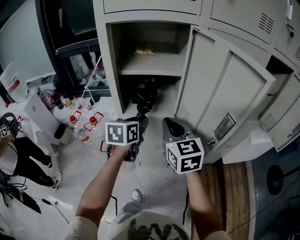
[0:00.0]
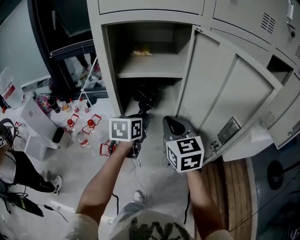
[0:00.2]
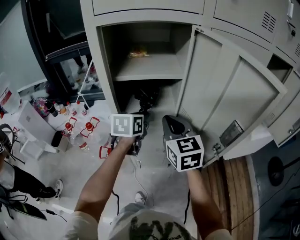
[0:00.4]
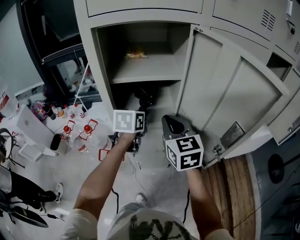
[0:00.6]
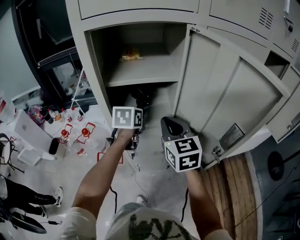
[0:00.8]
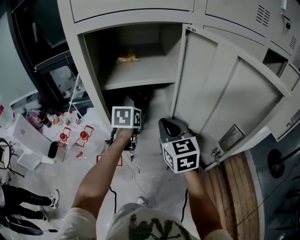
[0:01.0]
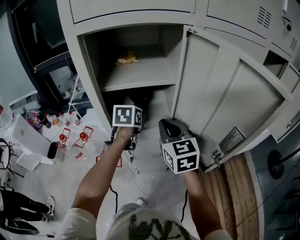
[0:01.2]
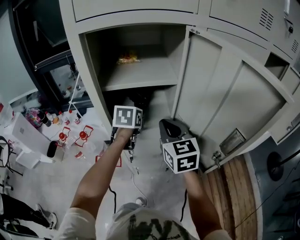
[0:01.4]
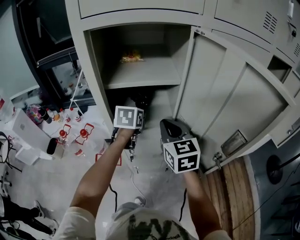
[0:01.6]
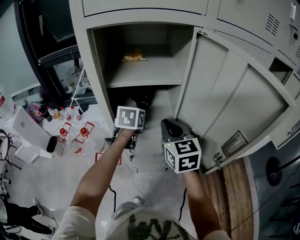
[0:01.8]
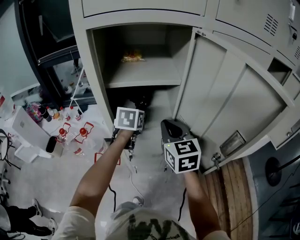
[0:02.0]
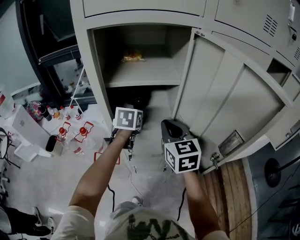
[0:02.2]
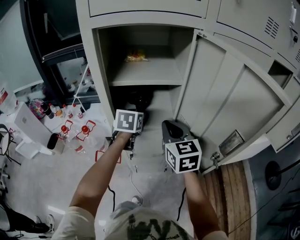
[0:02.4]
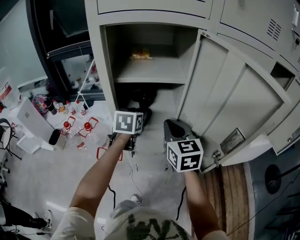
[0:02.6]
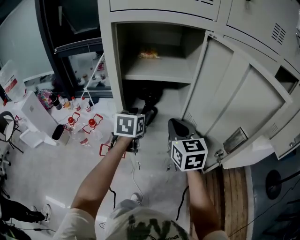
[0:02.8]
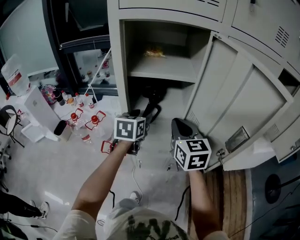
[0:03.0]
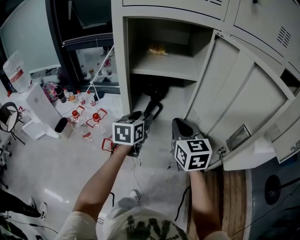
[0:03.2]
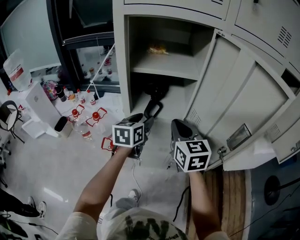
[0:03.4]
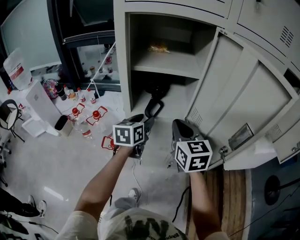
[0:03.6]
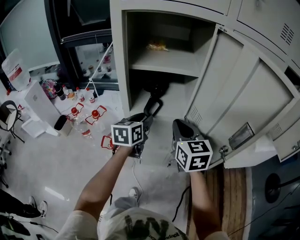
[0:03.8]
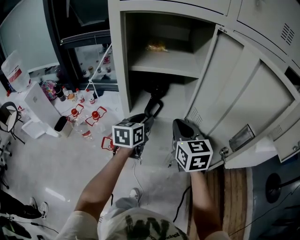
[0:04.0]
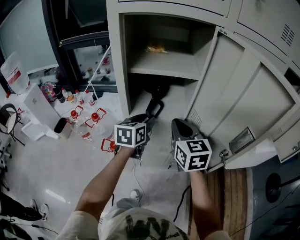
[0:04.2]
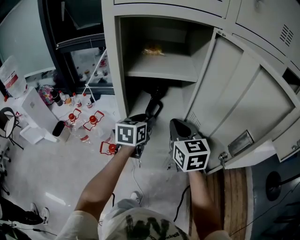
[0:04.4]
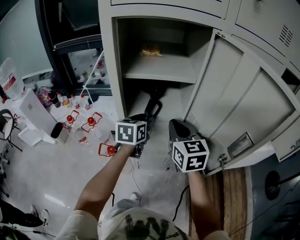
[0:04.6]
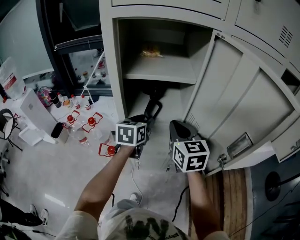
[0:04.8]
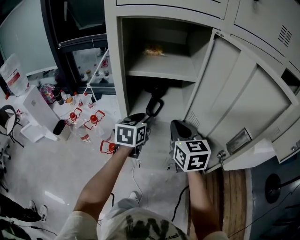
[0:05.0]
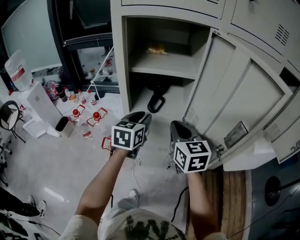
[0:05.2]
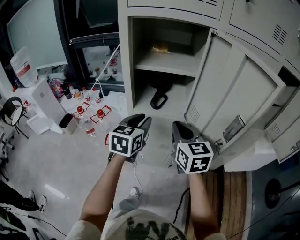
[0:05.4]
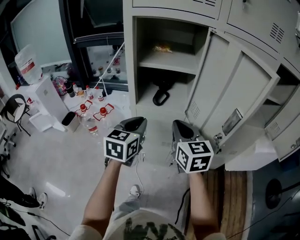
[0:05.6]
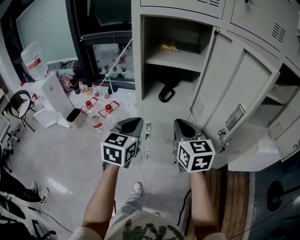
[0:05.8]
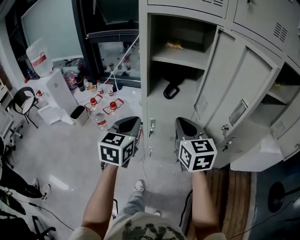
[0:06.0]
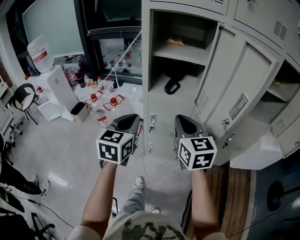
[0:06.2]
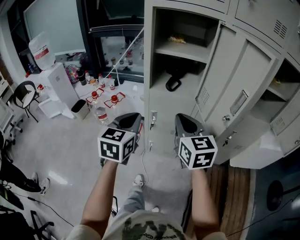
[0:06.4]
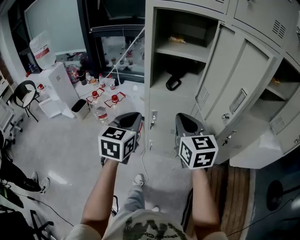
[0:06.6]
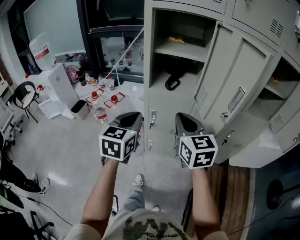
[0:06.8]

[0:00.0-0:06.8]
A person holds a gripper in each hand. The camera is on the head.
0:00.0 to 0:01.4: The right gripper moves forward, roughly 5 cm, while the left gripper is displaced forward by roughly 15 cm.
0:01.4 to 0:02.8: The left gripper is displaced backward by approximately 5 cm.
0:02.8 to 0:04.0: The left gripper shifts by roughly 5 cm.
0:04.0 to 0:05.4: The left gripper travels backward by some 5 cm.
0:05.4 to 0:06.8: The left gripper heads backward and to the left, covering approximately 15 cm, and closes. Meanwhile the right gripper moves backward, about 10 cm.

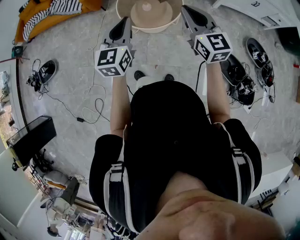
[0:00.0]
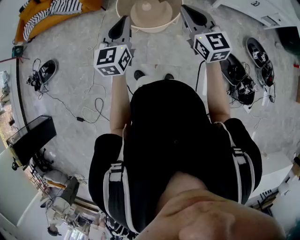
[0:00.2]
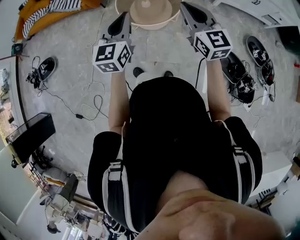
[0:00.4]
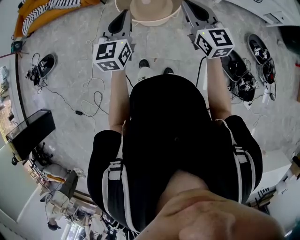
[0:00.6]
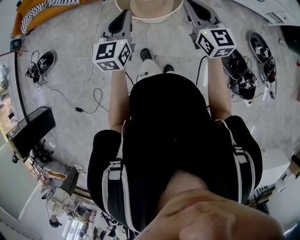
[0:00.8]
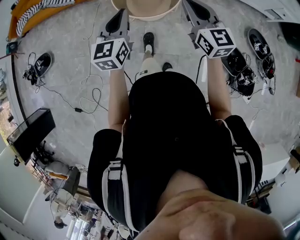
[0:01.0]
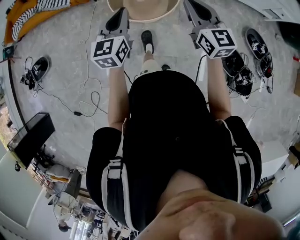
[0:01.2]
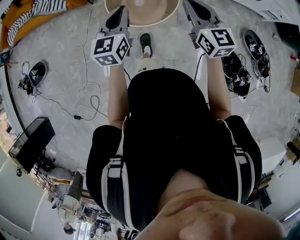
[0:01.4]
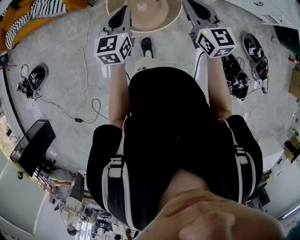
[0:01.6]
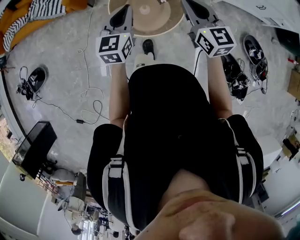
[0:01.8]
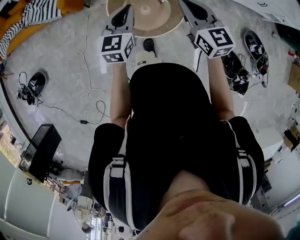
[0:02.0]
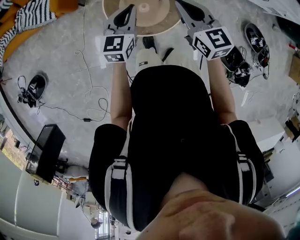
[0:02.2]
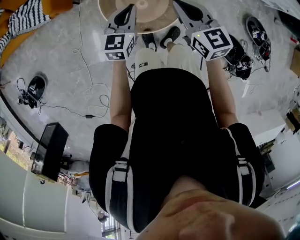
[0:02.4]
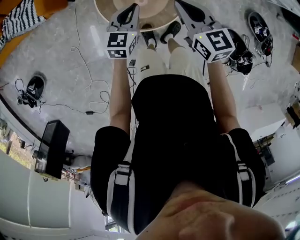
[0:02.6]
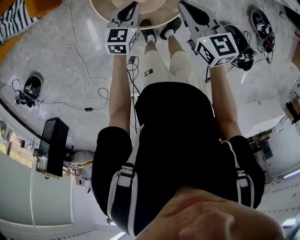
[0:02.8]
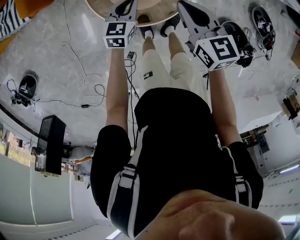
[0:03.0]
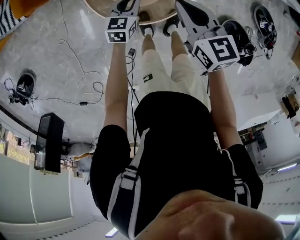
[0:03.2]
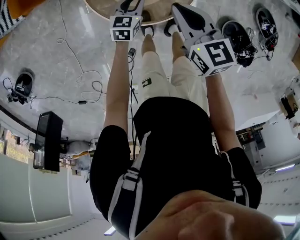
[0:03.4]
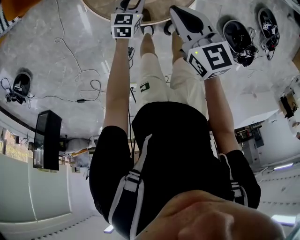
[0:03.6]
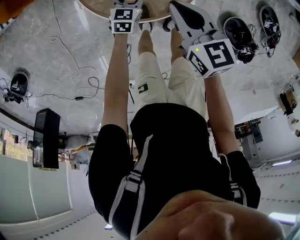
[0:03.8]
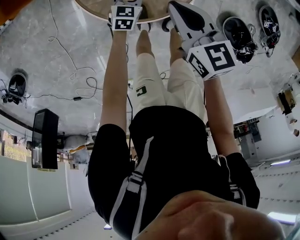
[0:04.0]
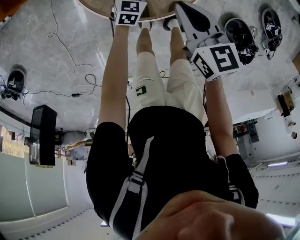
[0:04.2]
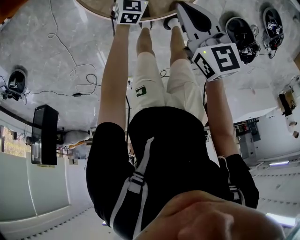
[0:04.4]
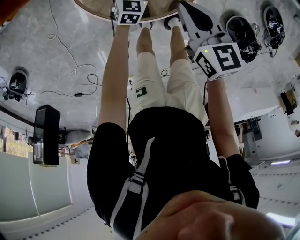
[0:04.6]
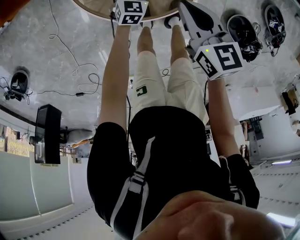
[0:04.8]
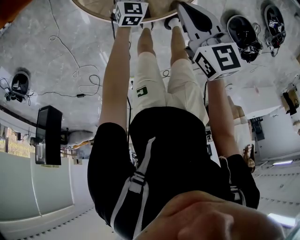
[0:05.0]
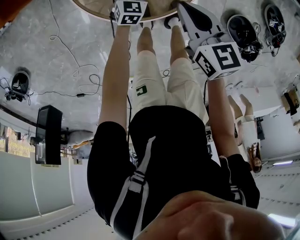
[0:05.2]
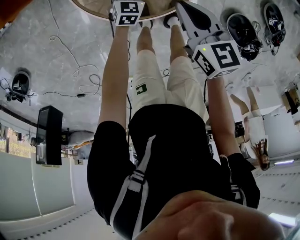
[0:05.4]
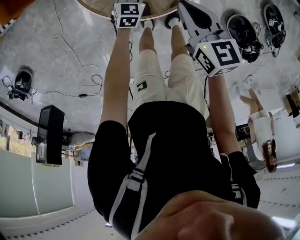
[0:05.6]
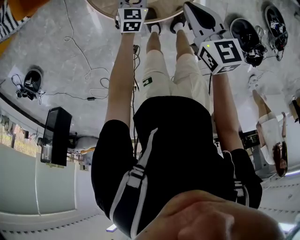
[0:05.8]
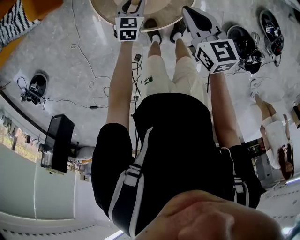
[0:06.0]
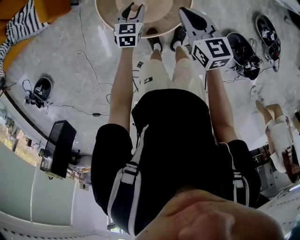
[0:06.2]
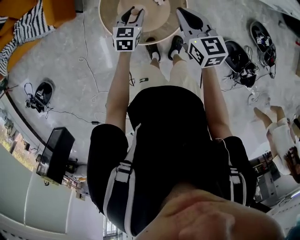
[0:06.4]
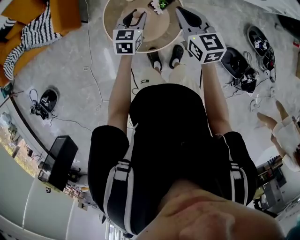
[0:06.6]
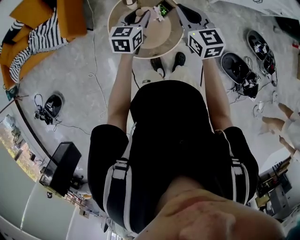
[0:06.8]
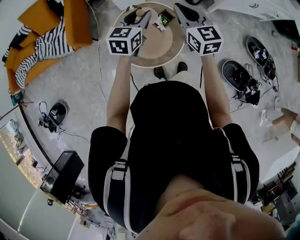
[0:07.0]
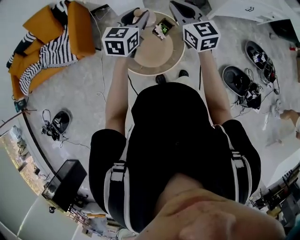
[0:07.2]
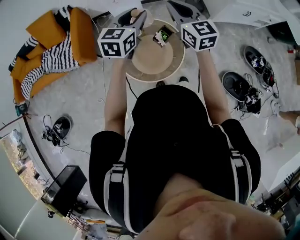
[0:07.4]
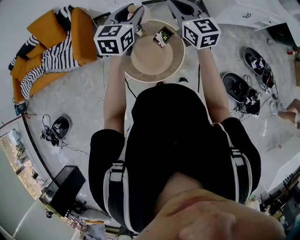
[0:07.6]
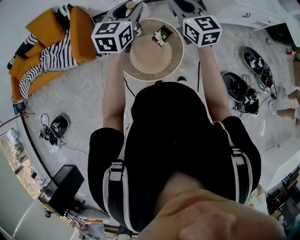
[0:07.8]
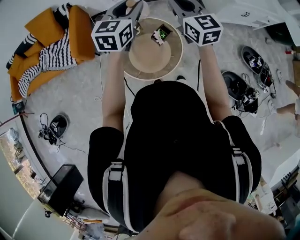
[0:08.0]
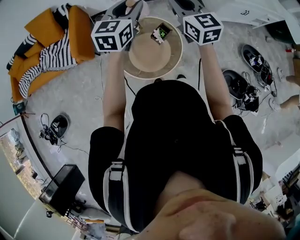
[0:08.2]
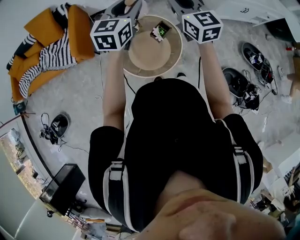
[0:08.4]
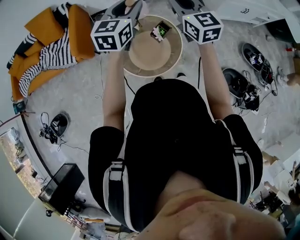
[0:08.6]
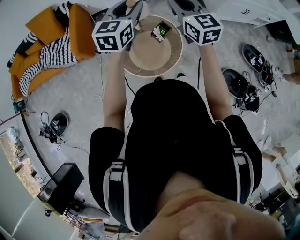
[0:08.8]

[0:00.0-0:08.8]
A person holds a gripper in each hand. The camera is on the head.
0:00.0 to 0:01.4: The right gripper moves forward, some 15 cm. Meanwhile the left gripper travels forward and downward by approximately 15 cm.
0:01.4 to 0:03.0: The right gripper shifts approximately 35 cm downward, forward and to the left, and changes its angle by about 30 degrees, while the left gripper shifts roughly 40 cm downward and forward, and swivels approximately 30 degrees.
0:03.0 to 0:04.4: The left gripper shifts approximately 25 cm downward, and opens its fingers. The right gripper goes about 15 cm downward.
0:04.4 to 0:05.8: Both grippers travel together upward, roughly 10 cm.
0:05.8 to 0:07.4: Both grippers travel together upward, approximately 50 cm. The right gripper tilts its fingers approximately 30 degrees upward. The left gripper swivels some 30 degrees.
0:07.4 to 0:08.8: The grippers make only small movements.

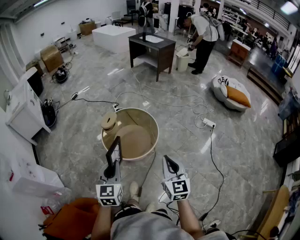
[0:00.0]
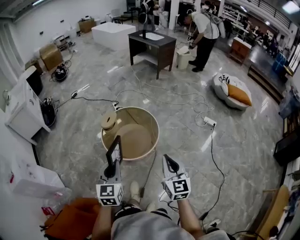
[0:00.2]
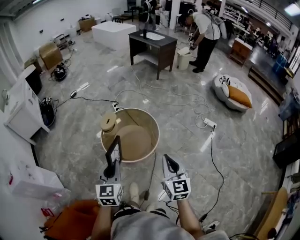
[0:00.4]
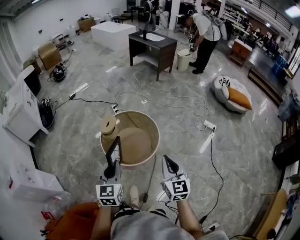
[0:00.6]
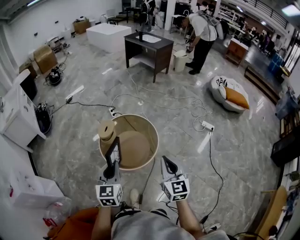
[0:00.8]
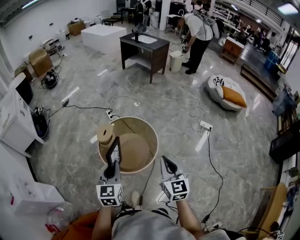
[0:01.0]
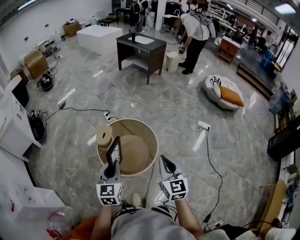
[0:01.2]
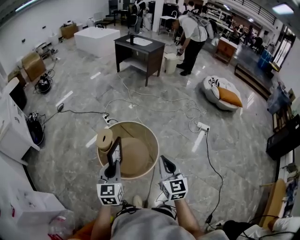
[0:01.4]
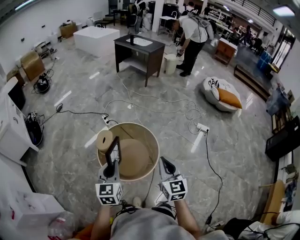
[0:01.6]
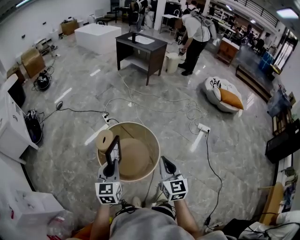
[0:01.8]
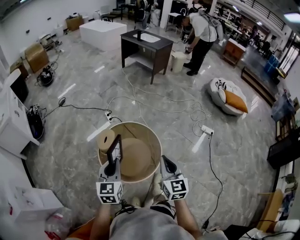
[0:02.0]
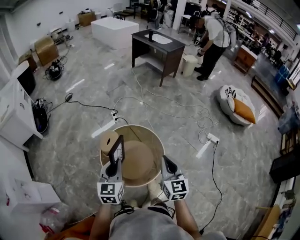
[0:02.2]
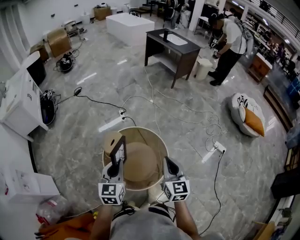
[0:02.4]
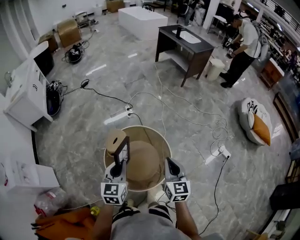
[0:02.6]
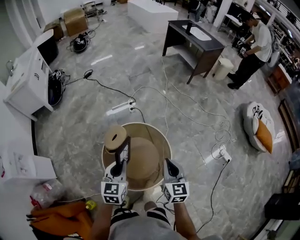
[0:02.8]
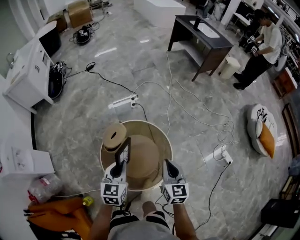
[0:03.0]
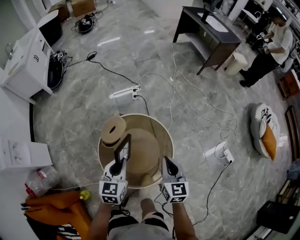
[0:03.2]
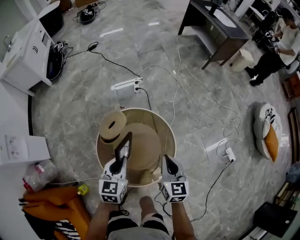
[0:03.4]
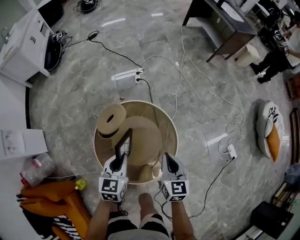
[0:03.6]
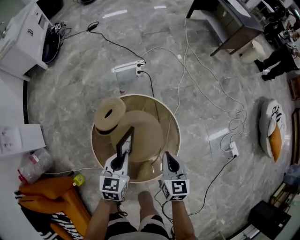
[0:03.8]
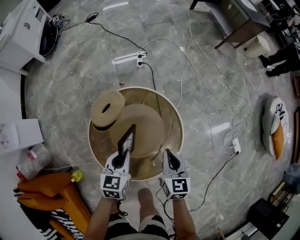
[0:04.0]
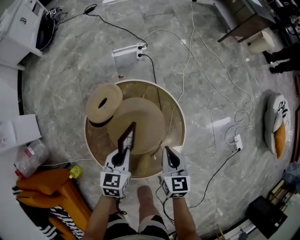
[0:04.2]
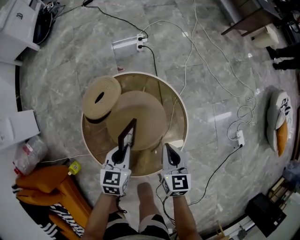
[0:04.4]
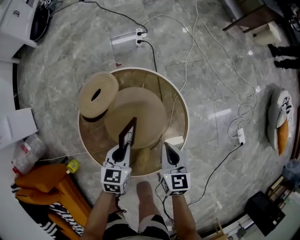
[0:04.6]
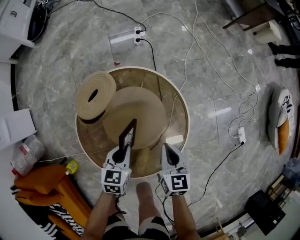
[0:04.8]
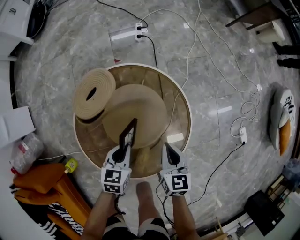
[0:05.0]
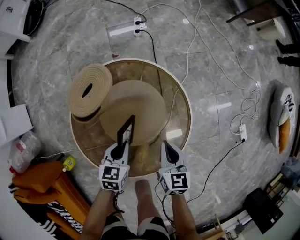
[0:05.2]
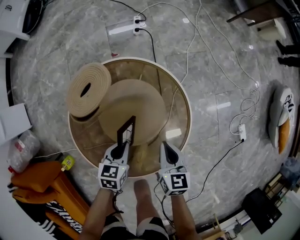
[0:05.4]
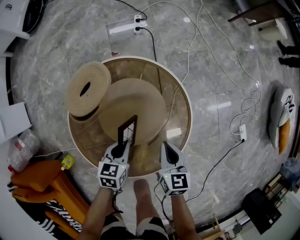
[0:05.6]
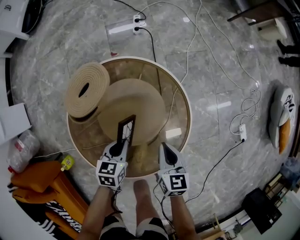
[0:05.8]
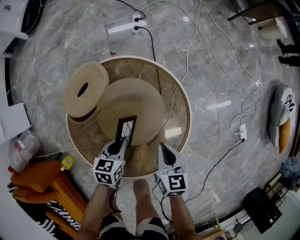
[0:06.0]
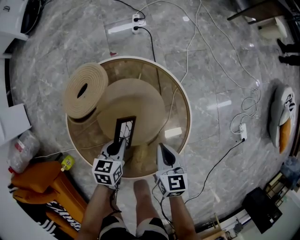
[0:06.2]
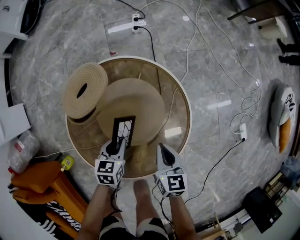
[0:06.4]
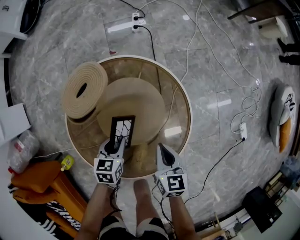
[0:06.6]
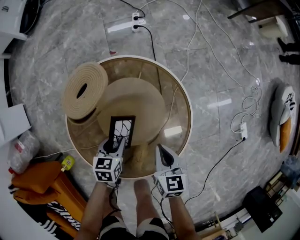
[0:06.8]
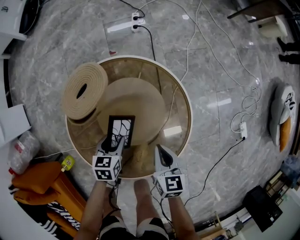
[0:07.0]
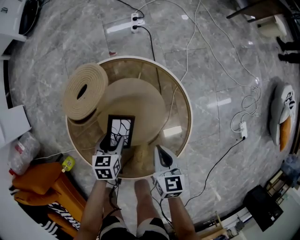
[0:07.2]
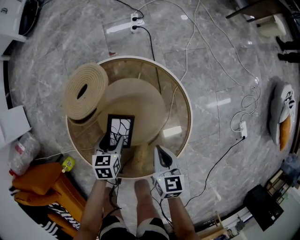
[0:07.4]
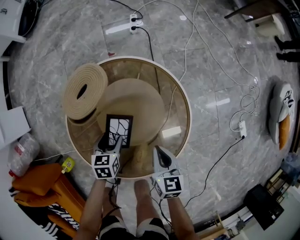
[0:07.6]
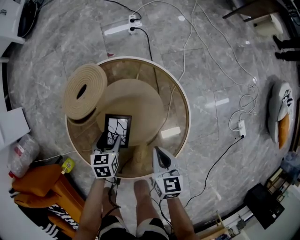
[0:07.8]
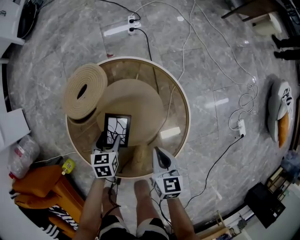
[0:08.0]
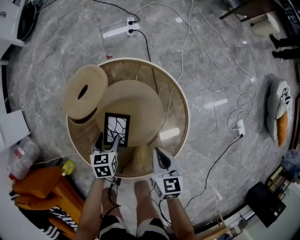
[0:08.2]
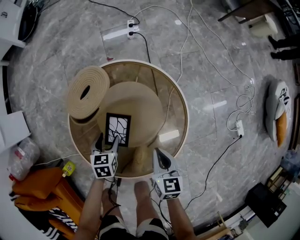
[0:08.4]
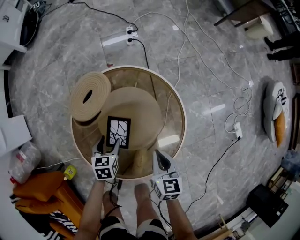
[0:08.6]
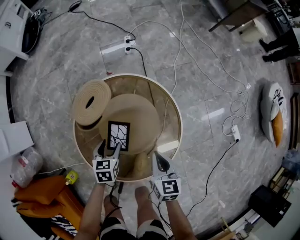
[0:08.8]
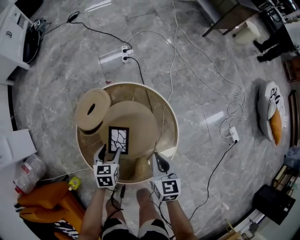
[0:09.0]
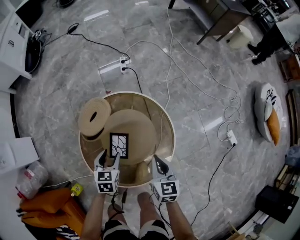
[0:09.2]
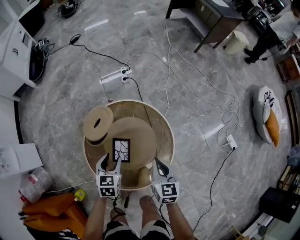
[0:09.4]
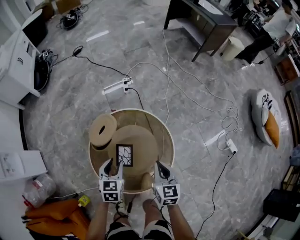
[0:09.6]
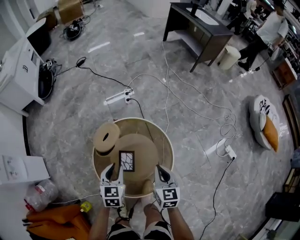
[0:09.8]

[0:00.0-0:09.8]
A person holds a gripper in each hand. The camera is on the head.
0:00.0 to 0:01.4: The left gripper heads forward, covering roughly 20 cm. The right gripper shifts roughly 20 cm forward and to the left.
0:01.4 to 0:02.8: The left gripper shifts about 25 cm forward and downward, and turns by approximately 20 degrees, while the right gripper is displaced forward by approximately 30 cm, and rotates roughly 20 degrees.
0:02.8 to 0:04.2: The two grippers go approximately 35 cm downward. The left gripper rotates some 20 degrees.
0:04.2 to 0:05.6: Both grippers move downward, about 15 cm.
0:05.6 to 0:07.0: The left gripper moves roughly 5 cm, and opens.
0:07.0 to 0:08.4: The grippers move only a little.
0:08.4 to 0:09.8: The two grippers go approximately 30 cm upward. The left gripper rotates roughly 30 degrees, and closes up.
